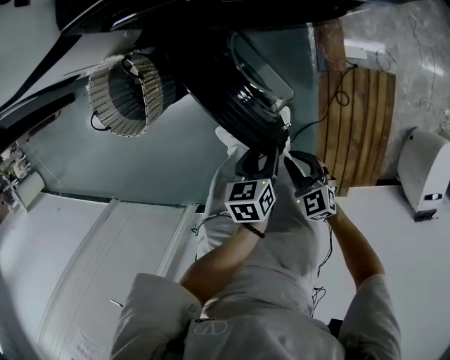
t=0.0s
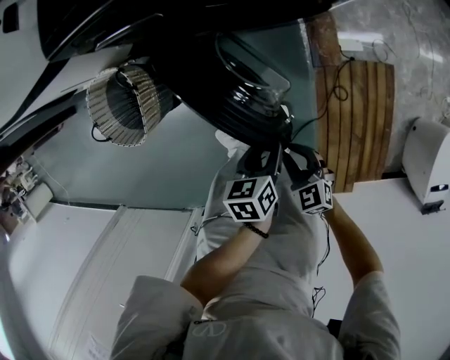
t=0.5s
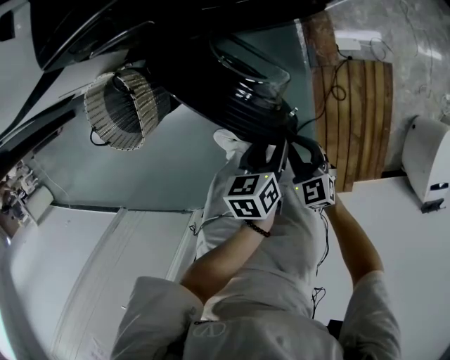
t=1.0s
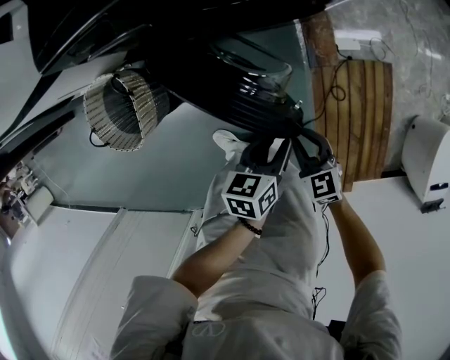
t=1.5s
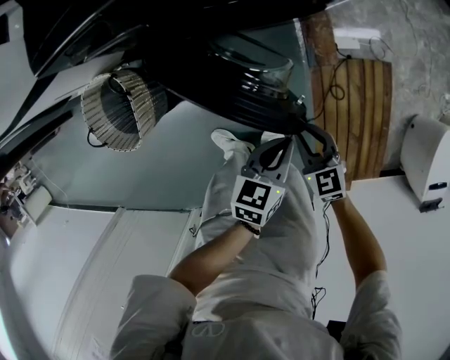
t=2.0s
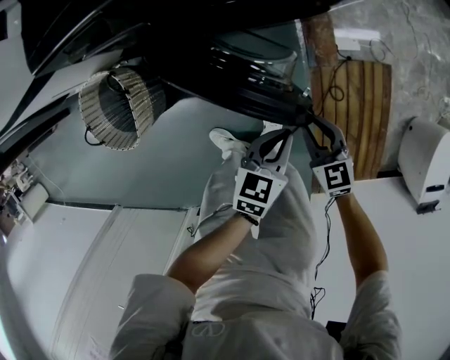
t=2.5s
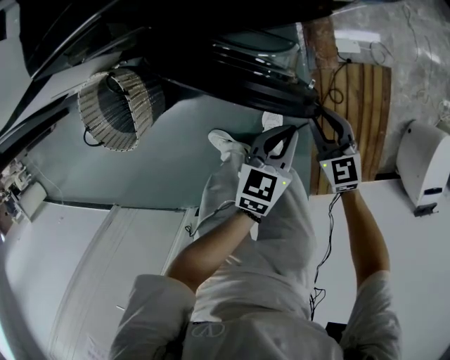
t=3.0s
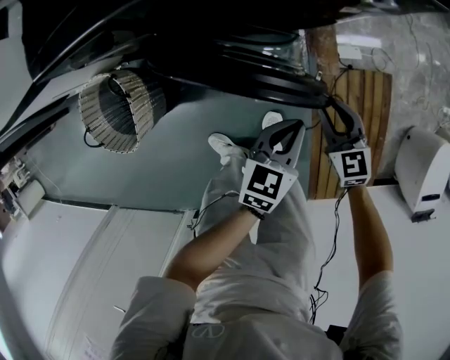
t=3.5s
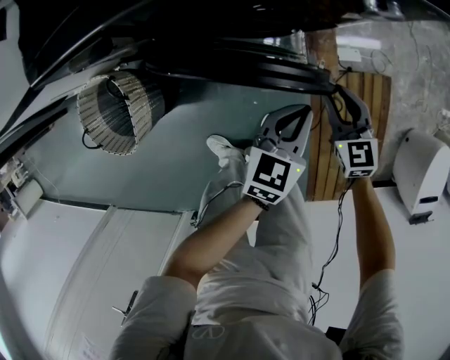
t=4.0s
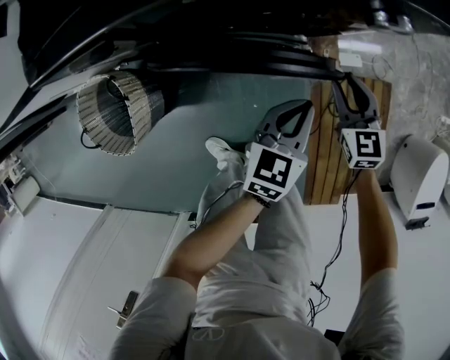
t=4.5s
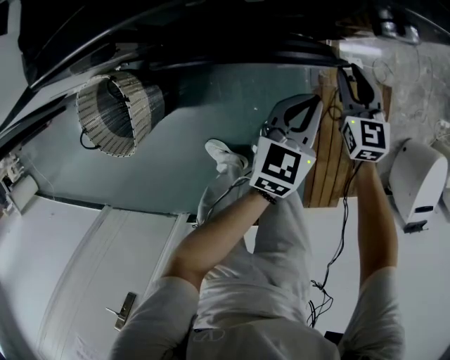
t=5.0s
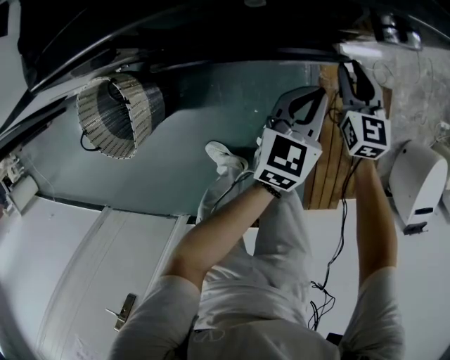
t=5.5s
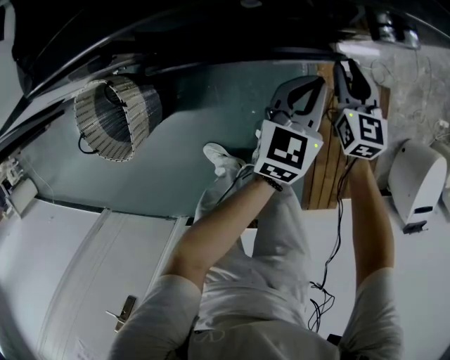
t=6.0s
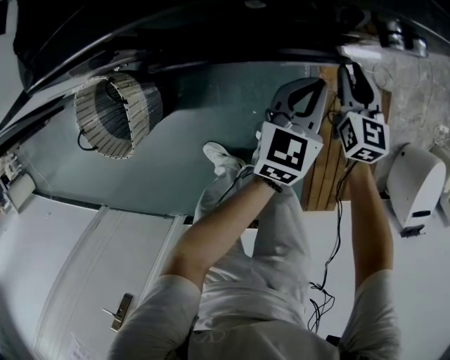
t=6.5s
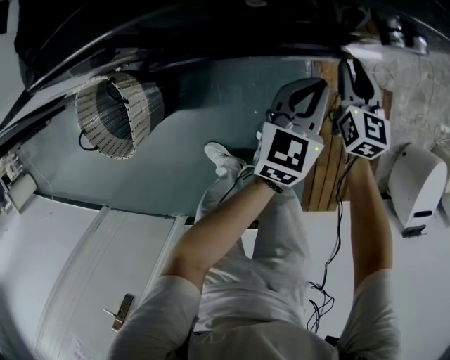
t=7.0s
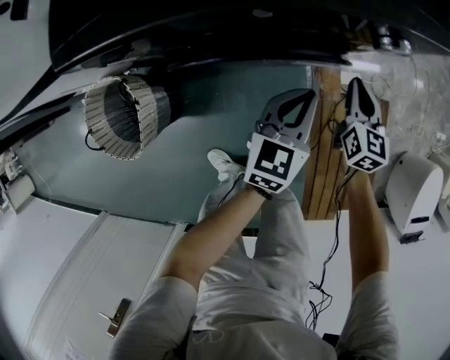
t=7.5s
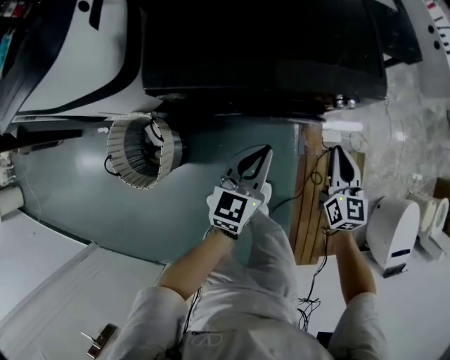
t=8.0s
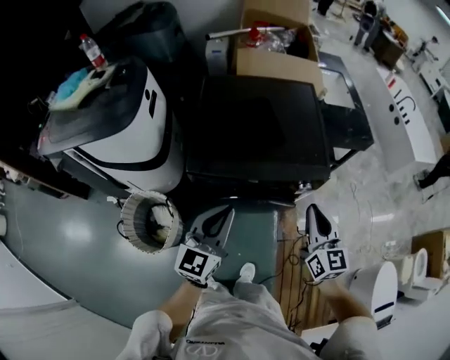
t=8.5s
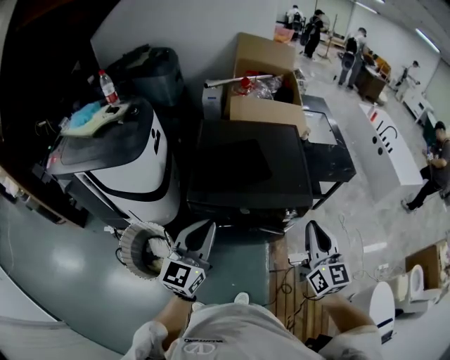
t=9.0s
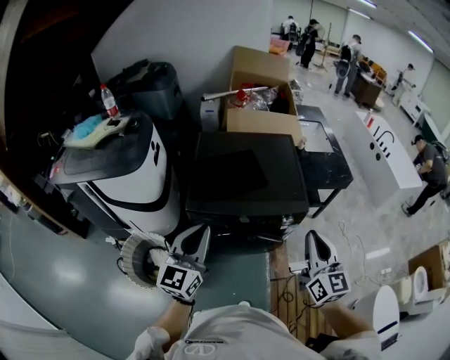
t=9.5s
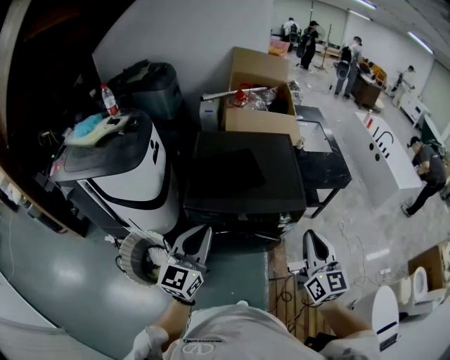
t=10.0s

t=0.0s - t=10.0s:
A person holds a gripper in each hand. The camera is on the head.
t=0.0s - t=2.0s: The right gripper travels forward and to the right by some 15 cm. The left gripper is displaced to the right by some 10 cm, rotates roughly 30 degrees, and closes.
t=2.0s - t=4.0s: The grippers both shift forward by roughly 15 cm.
t=4.0s - t=6.0s: Both grippers travel together forward, approximately 10 cm.
t=6.0s - t=8.0s: The left gripper goes about 25 cm upward, to the left and backward. Meanwhile the right gripper goes approximately 20 cm upward, and closes its fingers.
t=8.0s - t=10.0s: Both grippers travel together upward, some 40 cm. The left gripper changes its angle by some 30 degrees, while the right gripper rotates some 30 degrees.

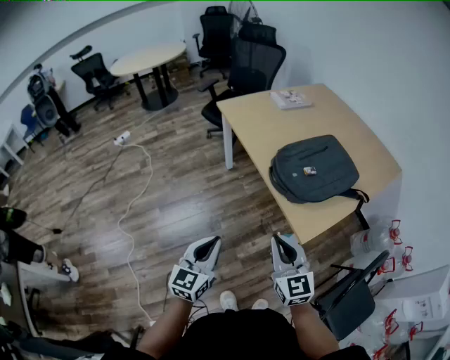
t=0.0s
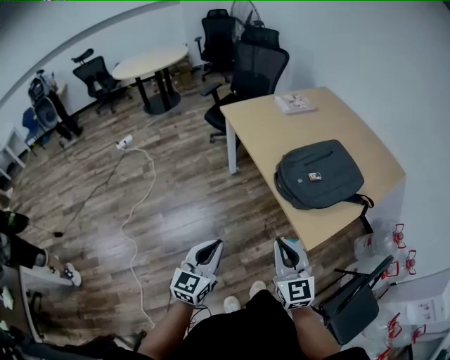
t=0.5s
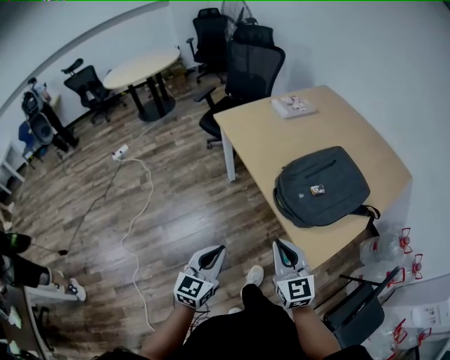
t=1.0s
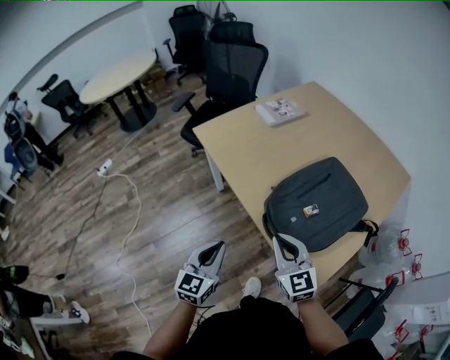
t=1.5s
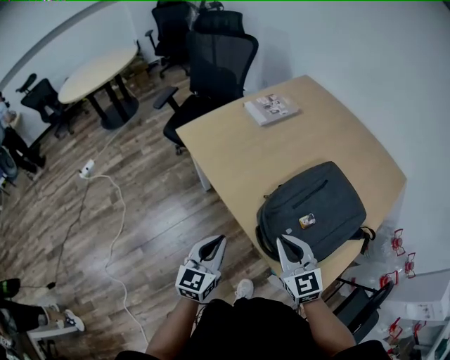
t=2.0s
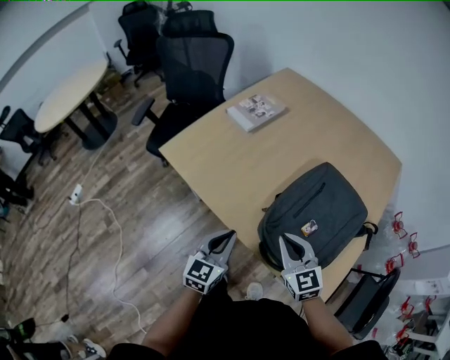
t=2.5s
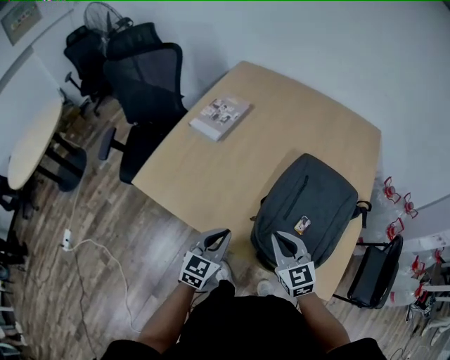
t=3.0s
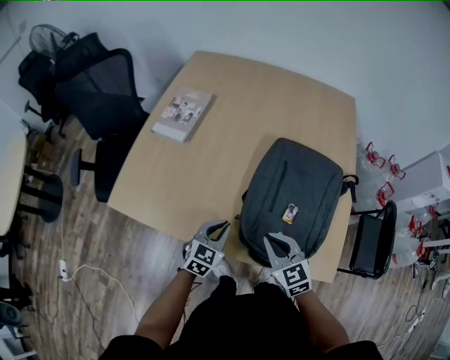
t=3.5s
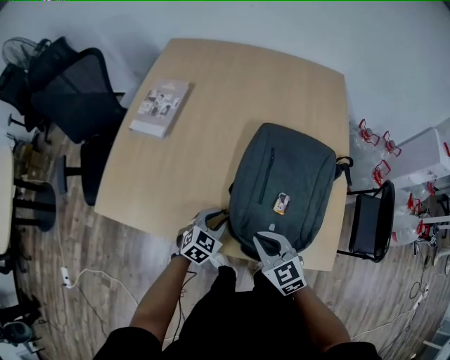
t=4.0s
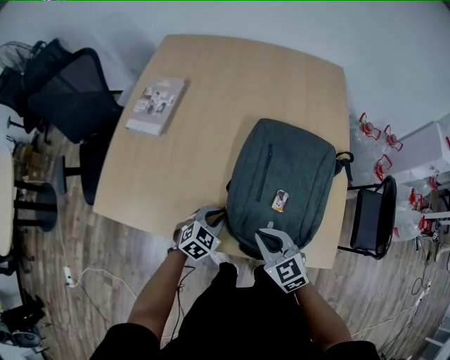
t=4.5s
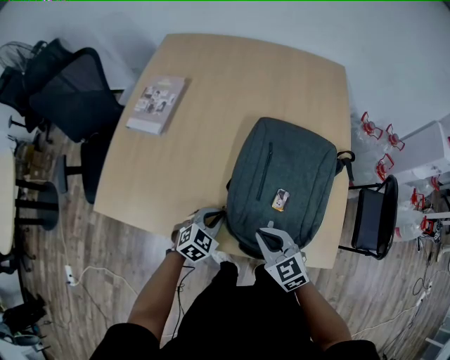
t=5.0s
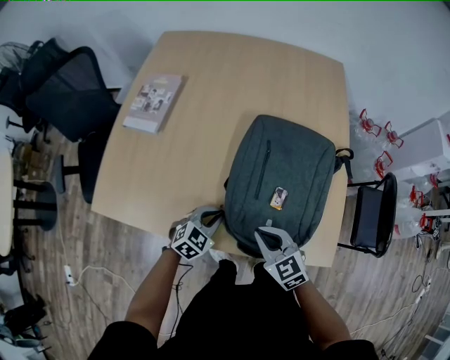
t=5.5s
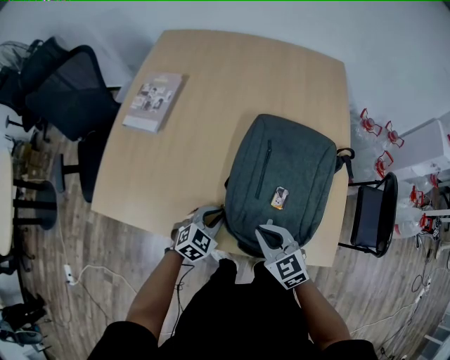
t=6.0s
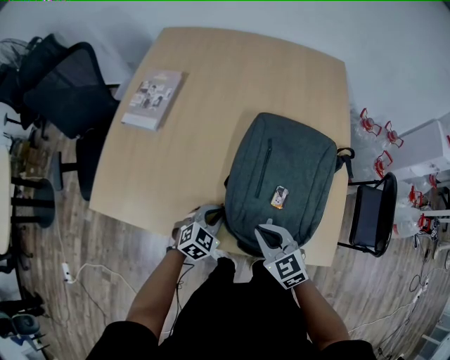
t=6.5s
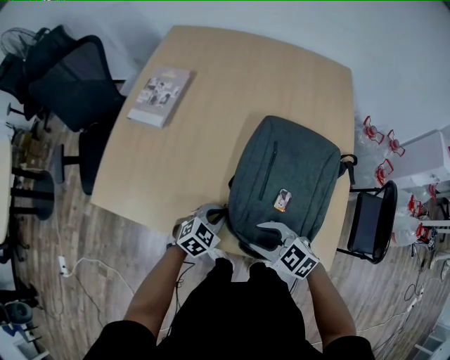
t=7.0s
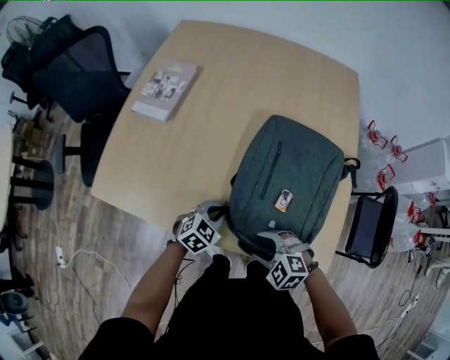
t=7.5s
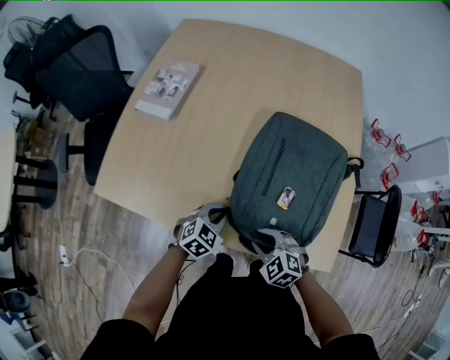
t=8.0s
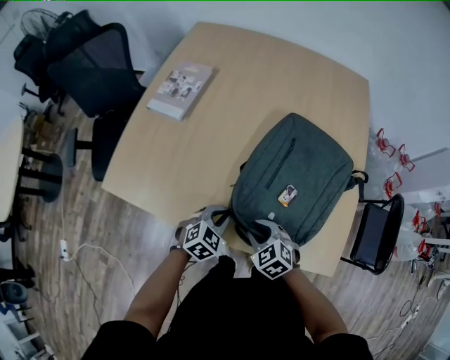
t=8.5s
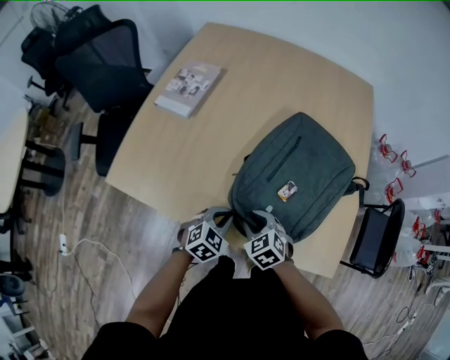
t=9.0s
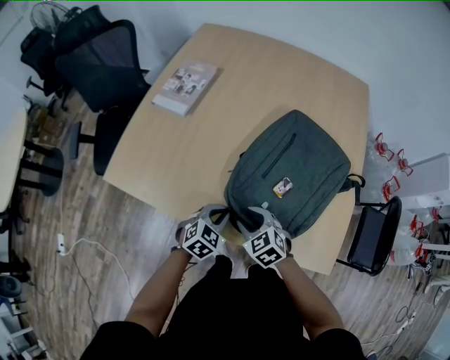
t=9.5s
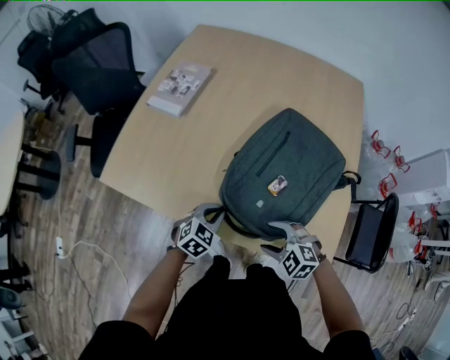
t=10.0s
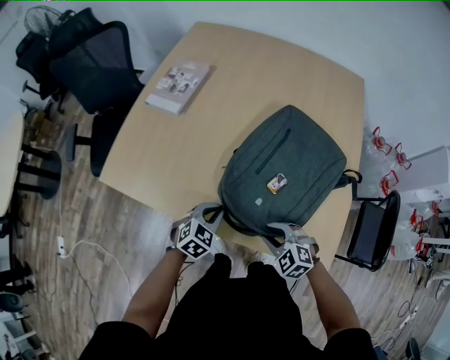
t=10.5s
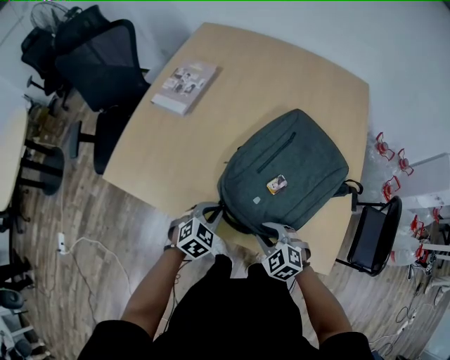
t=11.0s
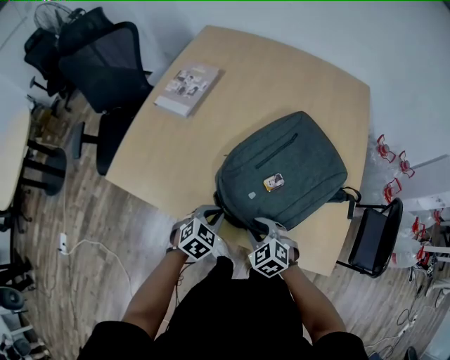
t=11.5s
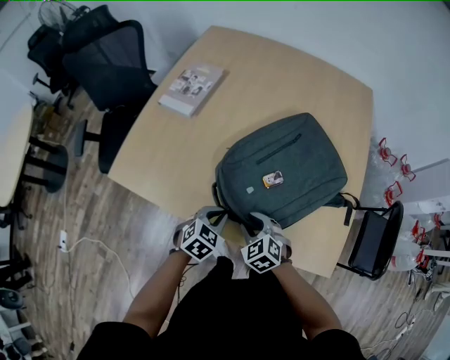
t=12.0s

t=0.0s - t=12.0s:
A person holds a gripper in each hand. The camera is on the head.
t=0.0s - t=2.0s: The grippers both shift forward by about 35 cm.
t=2.0s - t=4.0s: The left gripper ends up about 25 cm from where it was, turns by approximately 70 degrees, and opens up; the right gripper goes roughly 10 cm downward, and changes its angle by roughly 30 degrees.
t=4.0s - t=6.0s: The grippers stay close to where they were, moving slightly.
t=6.0s - t=8.0s: The right gripper travels downward by some 5 cm, swivels some 30 degrees, and opens its fingers.
t=8.0s - t=10.0s: The right gripper moves approximately 5 cm to the left and comes back, and opens.
t=10.0s - t=12.0s: The right gripper heads to the left and forward, covering approximately 10 cm, rotates approximately 30 degrees, and closes up.

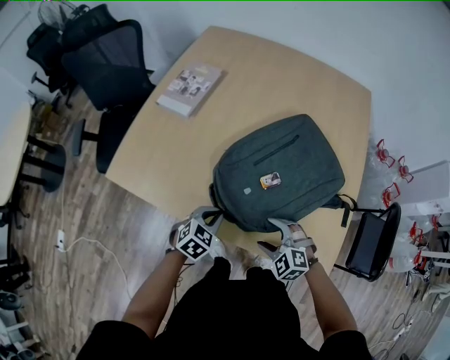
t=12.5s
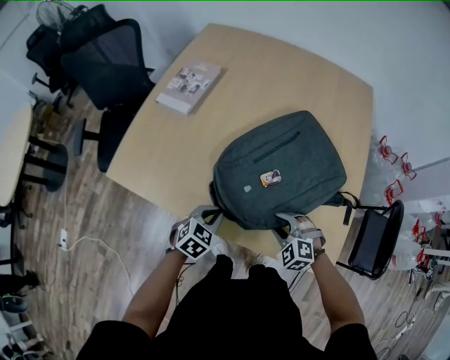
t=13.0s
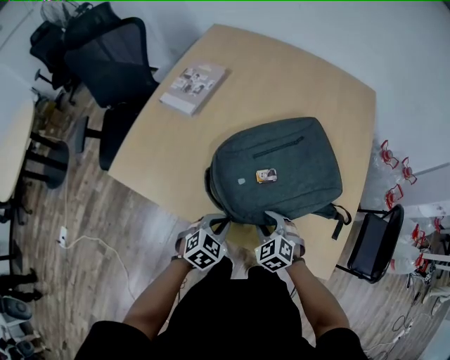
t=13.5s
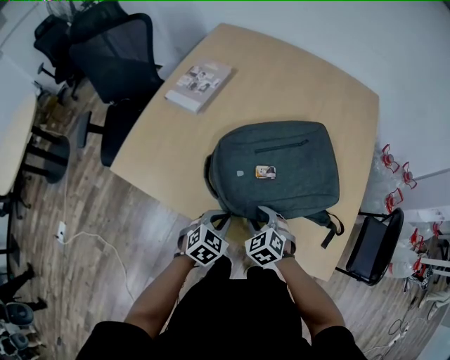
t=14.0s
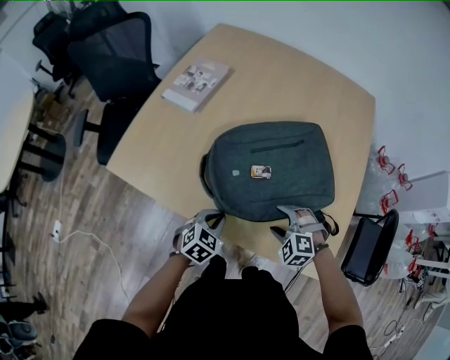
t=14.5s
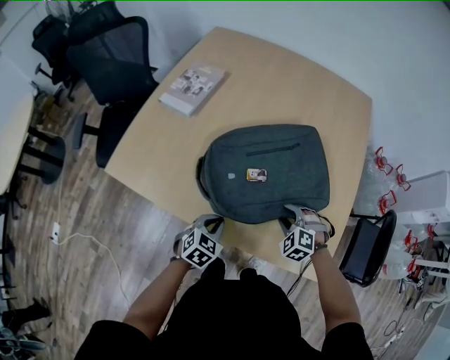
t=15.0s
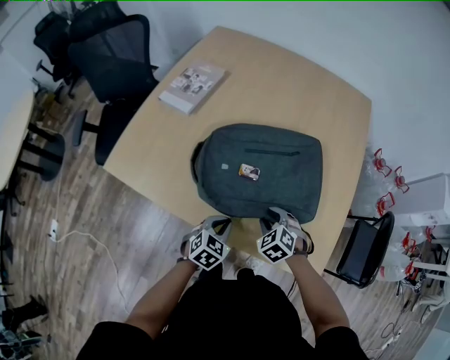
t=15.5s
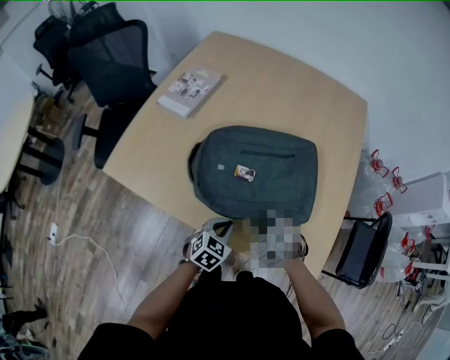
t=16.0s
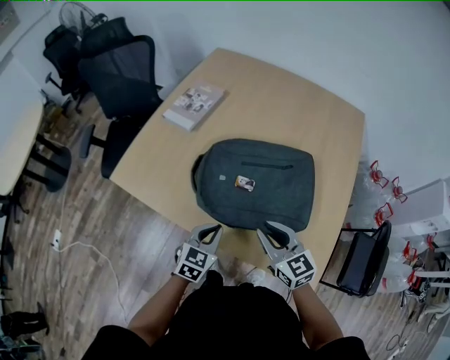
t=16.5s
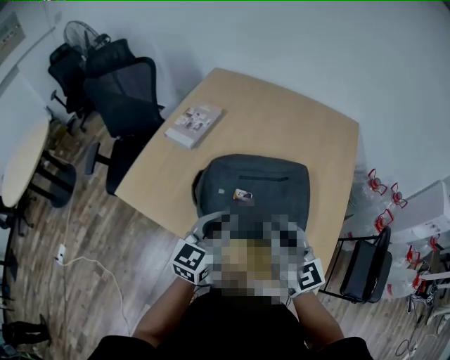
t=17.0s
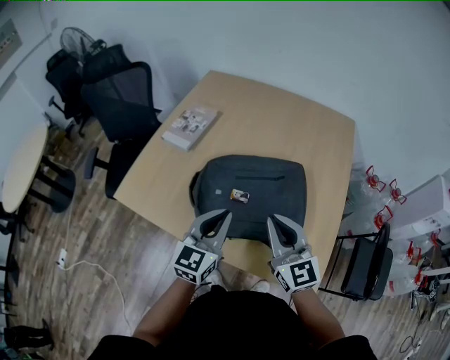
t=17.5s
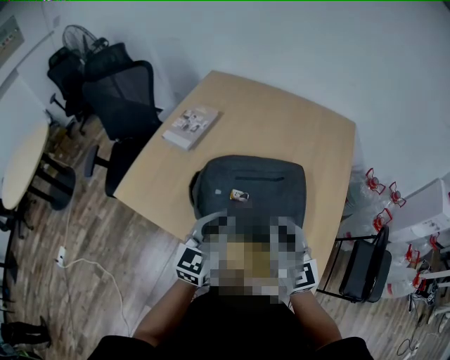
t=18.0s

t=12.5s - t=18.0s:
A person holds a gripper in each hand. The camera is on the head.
t=12.5s - t=14.5s: The right gripper shifts by some 5 cm, and closes, then opens again.
t=14.5s - t=16.0s: The left gripper is displaced to the right by approximately 5 cm, while the right gripper rotates some 30 degrees, and closes its fingers.
t=16.0s - t=18.0s: The grippers both shift upward by approximately 25 cm. The left gripper tilts its fingers some 40 degrees upward. Meanwhile the right gripper points its fingers some 50 degrees further upward, and closes its fingers.
